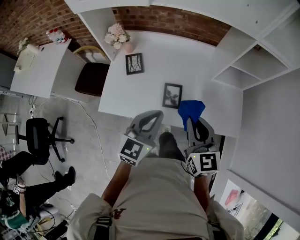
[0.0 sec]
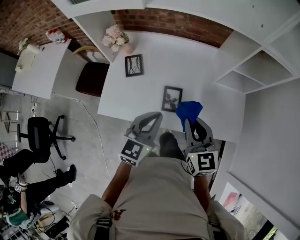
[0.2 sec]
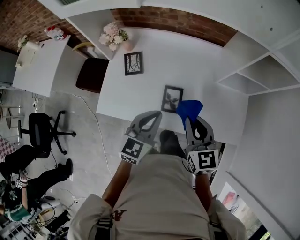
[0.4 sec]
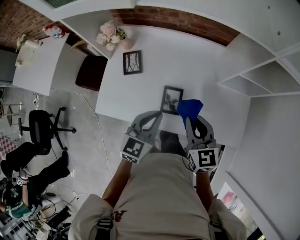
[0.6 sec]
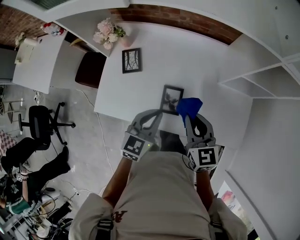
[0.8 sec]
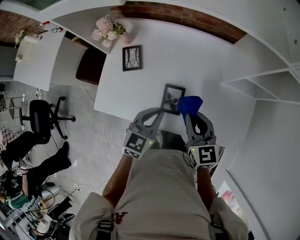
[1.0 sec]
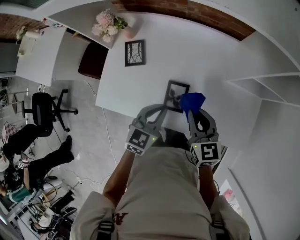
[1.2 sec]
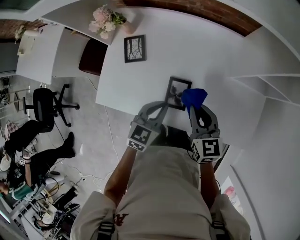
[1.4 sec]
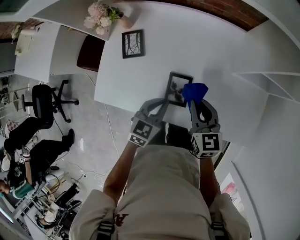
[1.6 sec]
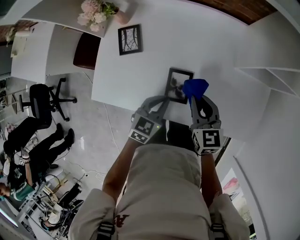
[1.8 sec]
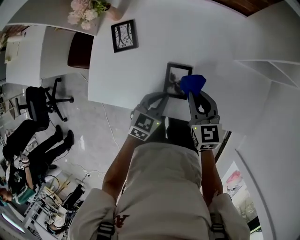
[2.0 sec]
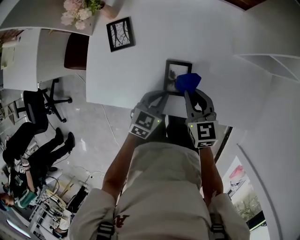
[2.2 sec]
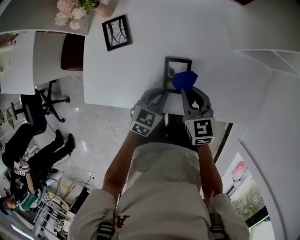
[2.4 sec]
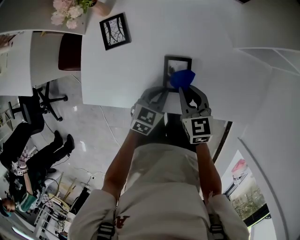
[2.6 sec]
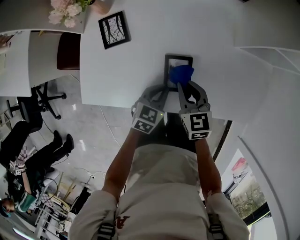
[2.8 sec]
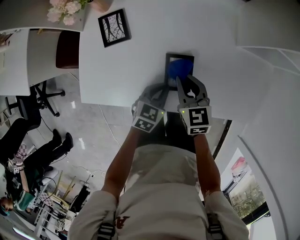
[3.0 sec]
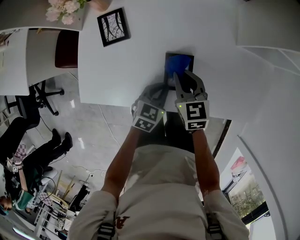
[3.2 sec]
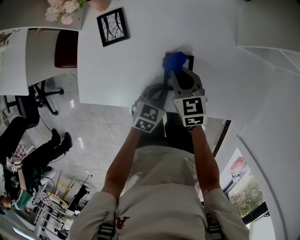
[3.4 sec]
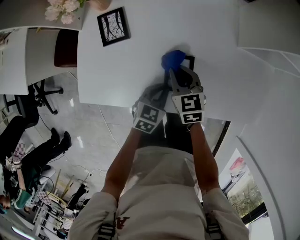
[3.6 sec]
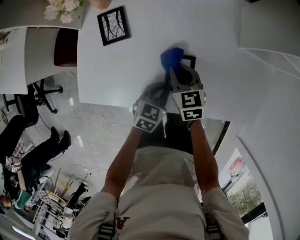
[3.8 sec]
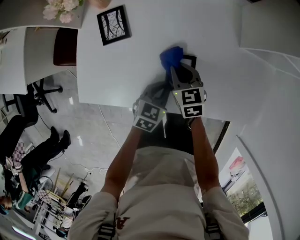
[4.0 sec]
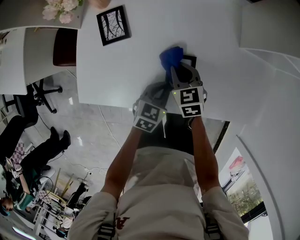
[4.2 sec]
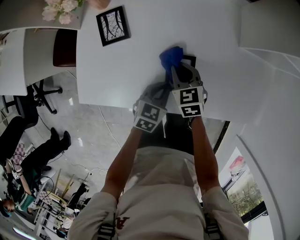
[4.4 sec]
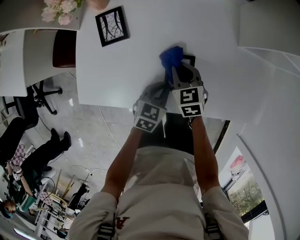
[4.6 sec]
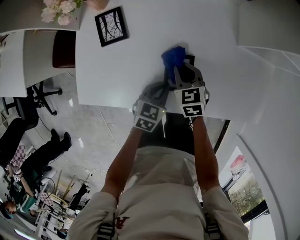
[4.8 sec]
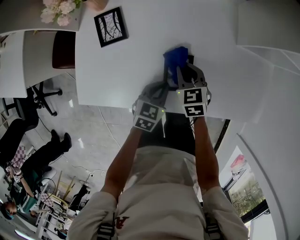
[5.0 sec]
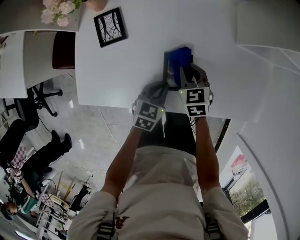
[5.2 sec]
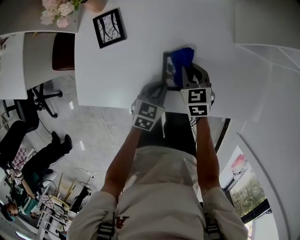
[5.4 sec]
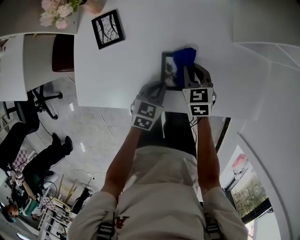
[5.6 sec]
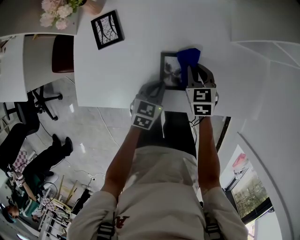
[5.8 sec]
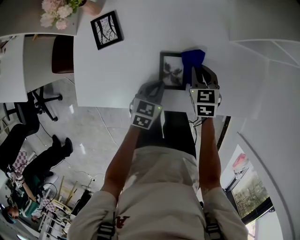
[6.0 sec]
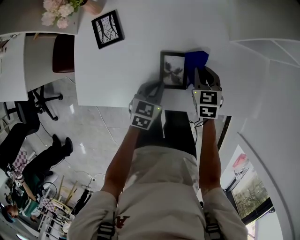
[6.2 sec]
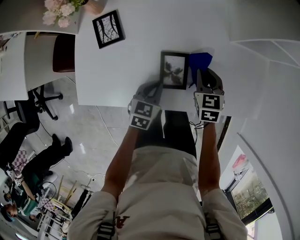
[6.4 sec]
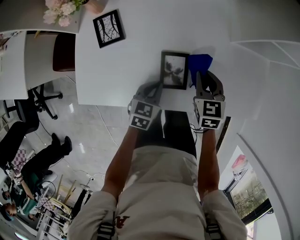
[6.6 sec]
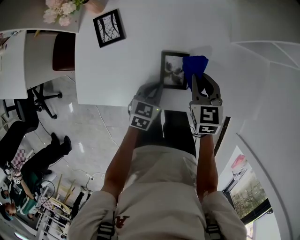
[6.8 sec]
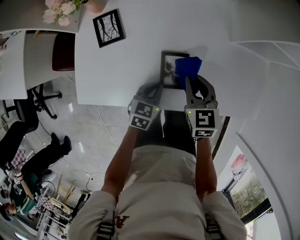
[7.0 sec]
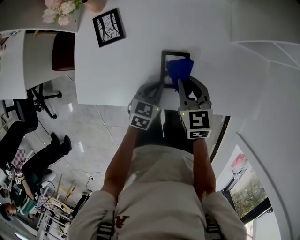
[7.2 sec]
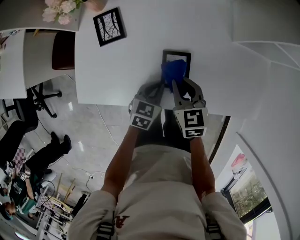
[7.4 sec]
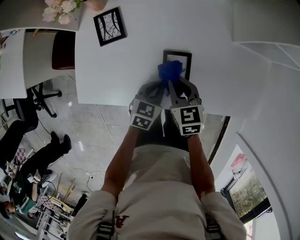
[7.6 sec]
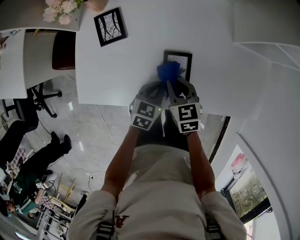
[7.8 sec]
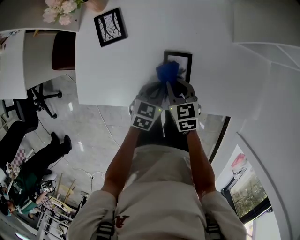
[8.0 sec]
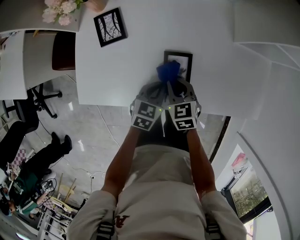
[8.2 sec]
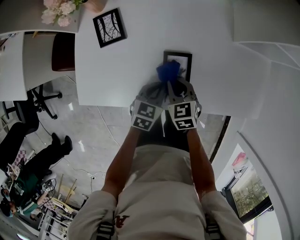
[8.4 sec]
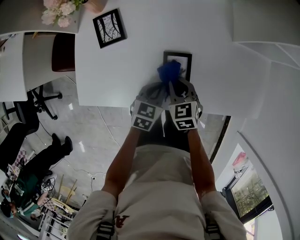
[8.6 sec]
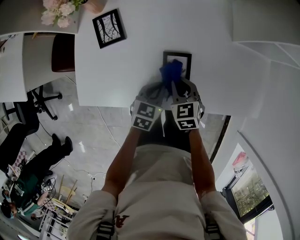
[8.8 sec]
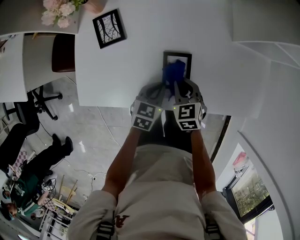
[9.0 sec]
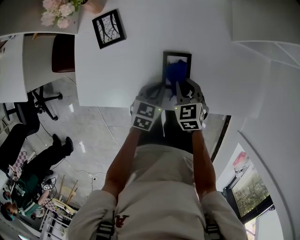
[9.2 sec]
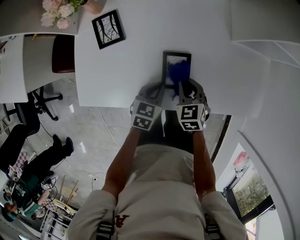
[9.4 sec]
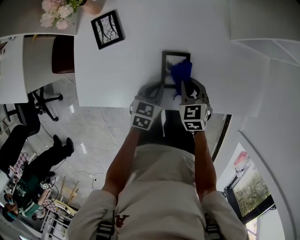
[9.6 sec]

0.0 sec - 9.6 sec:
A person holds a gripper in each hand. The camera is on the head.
0.0 sec - 1.6 sec: The grippers both shift downward and forward by some 20 cm. The left gripper swivels approximately 20 degrees.
1.6 sec - 3.2 sec: The right gripper travels downward and to the left by about 10 cm, and moves about 10 cm backward and comes back, while the left gripper is displaced downward by about 10 cm.
3.2 sec - 4.8 sec: The right gripper shifts about 5 cm downward.
4.8 sec - 6.4 sec: The right gripper travels to the right by approximately 10 cm.
6.4 sec - 8.0 sec: The right gripper travels to the left and backward by roughly 15 cm.
8.0 sec - 9.6 sec: The right gripper is displaced to the right by about 5 cm.

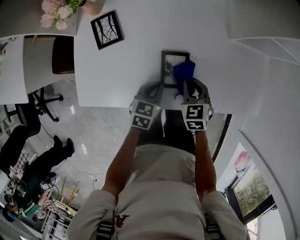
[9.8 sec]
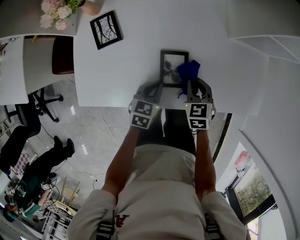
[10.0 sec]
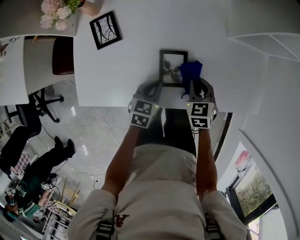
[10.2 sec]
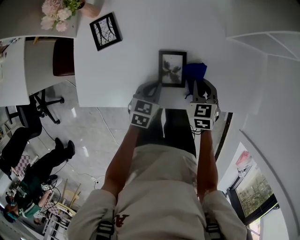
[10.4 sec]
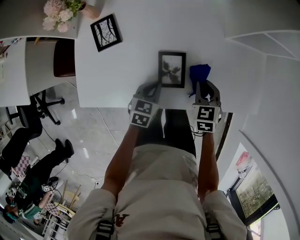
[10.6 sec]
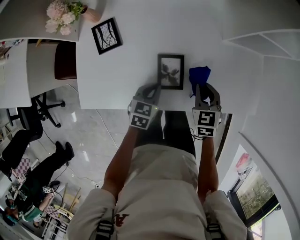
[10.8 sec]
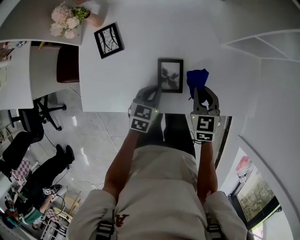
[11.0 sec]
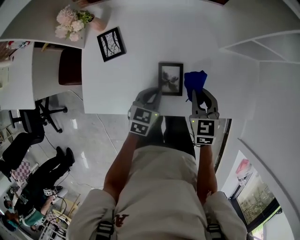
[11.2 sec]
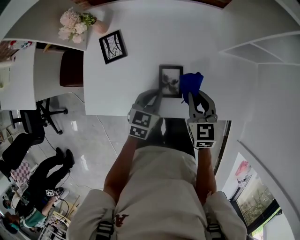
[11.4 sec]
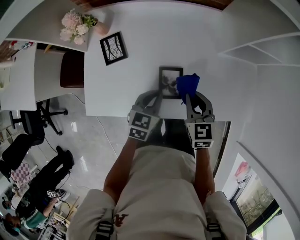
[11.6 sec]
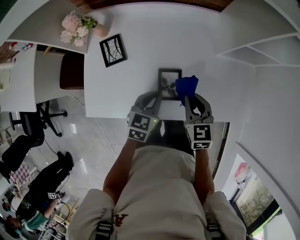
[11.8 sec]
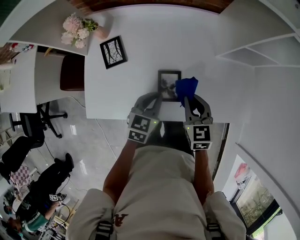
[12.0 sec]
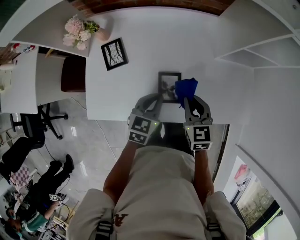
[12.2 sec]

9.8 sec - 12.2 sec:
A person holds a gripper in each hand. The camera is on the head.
9.8 sec - 11.0 sec: The right gripper travels upward by approximately 5 cm.
11.0 sec - 12.2 sec: The left gripper shifts roughly 10 cm upward. Meanwhile the right gripper shifts roughly 5 cm upward.

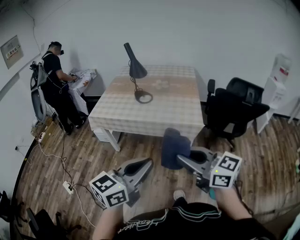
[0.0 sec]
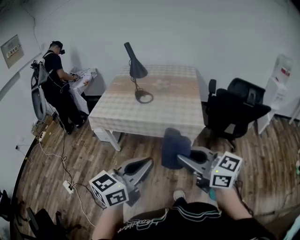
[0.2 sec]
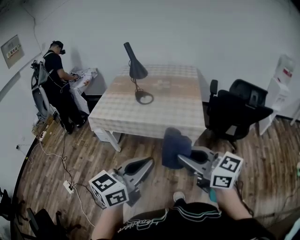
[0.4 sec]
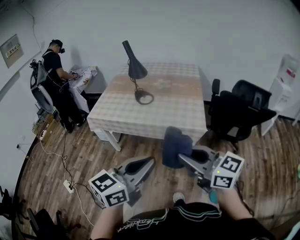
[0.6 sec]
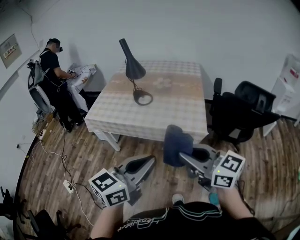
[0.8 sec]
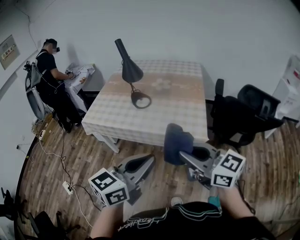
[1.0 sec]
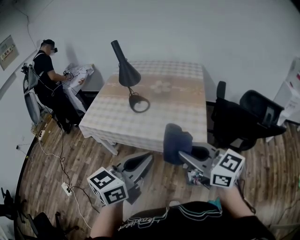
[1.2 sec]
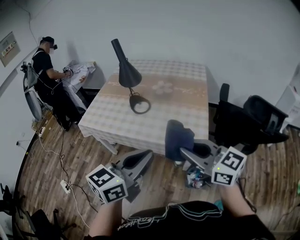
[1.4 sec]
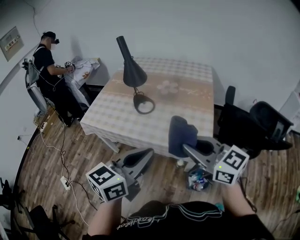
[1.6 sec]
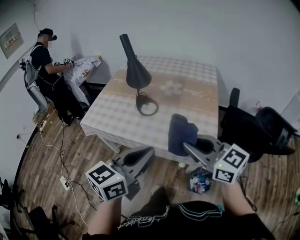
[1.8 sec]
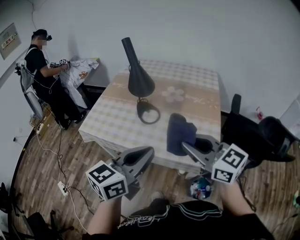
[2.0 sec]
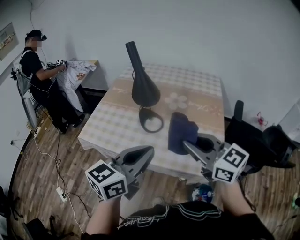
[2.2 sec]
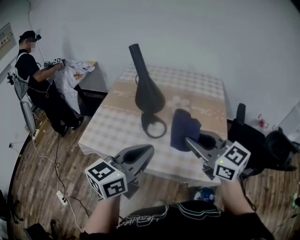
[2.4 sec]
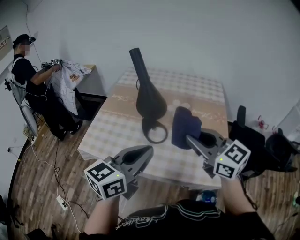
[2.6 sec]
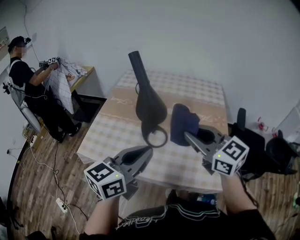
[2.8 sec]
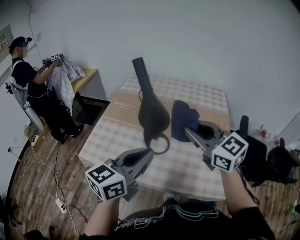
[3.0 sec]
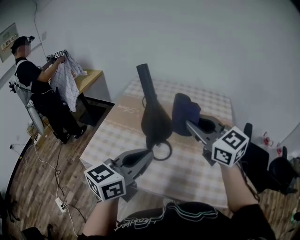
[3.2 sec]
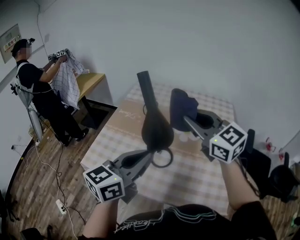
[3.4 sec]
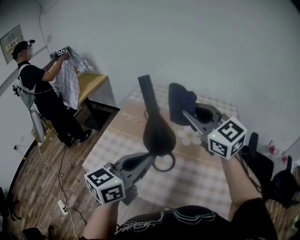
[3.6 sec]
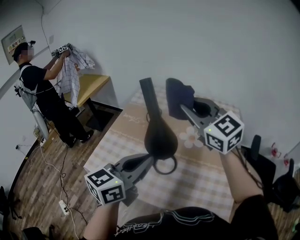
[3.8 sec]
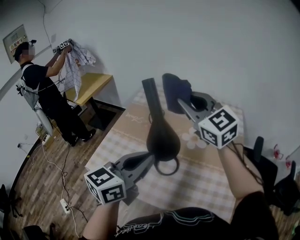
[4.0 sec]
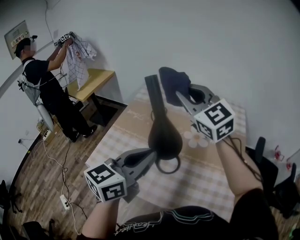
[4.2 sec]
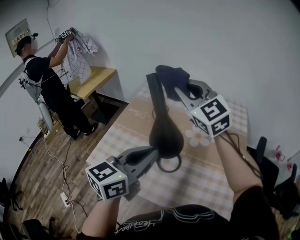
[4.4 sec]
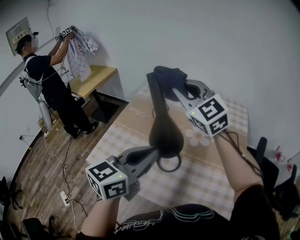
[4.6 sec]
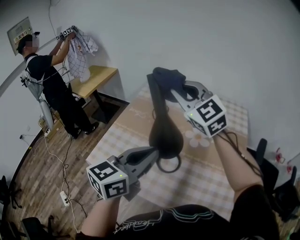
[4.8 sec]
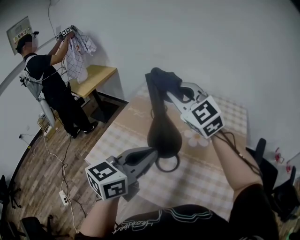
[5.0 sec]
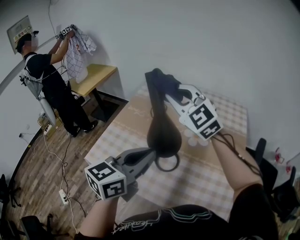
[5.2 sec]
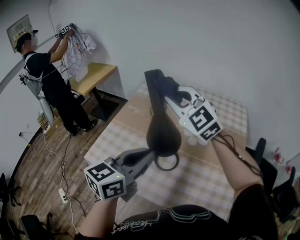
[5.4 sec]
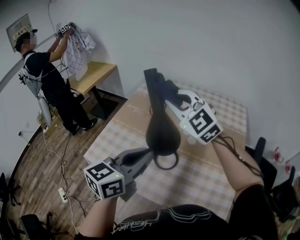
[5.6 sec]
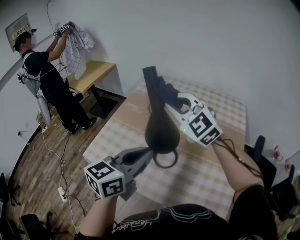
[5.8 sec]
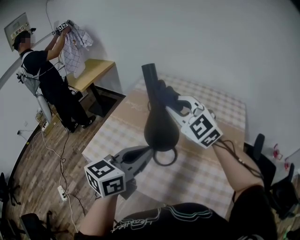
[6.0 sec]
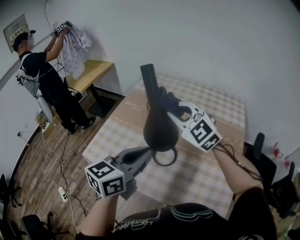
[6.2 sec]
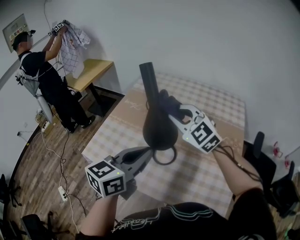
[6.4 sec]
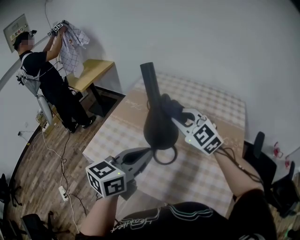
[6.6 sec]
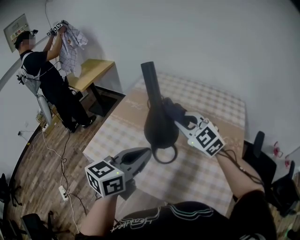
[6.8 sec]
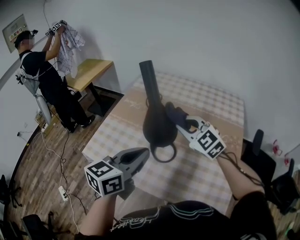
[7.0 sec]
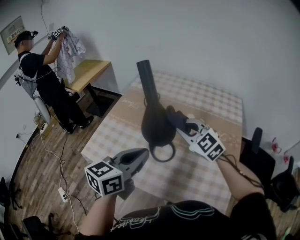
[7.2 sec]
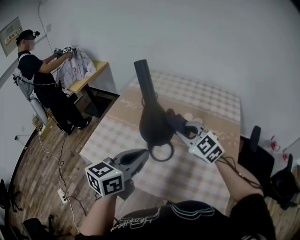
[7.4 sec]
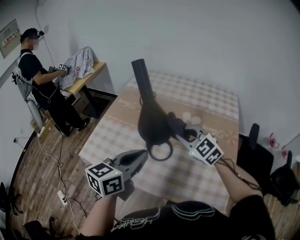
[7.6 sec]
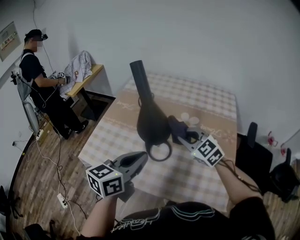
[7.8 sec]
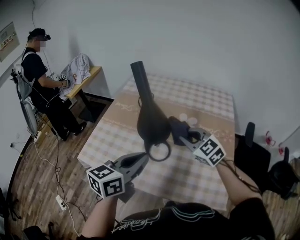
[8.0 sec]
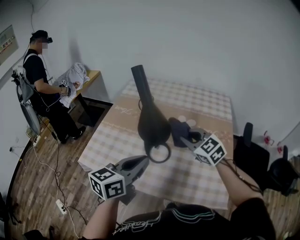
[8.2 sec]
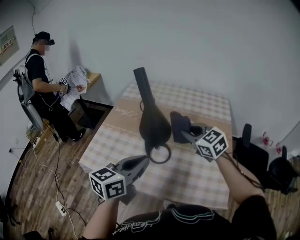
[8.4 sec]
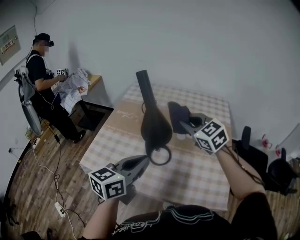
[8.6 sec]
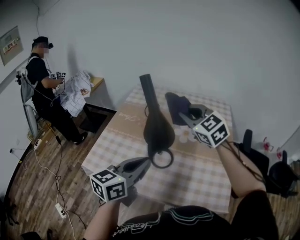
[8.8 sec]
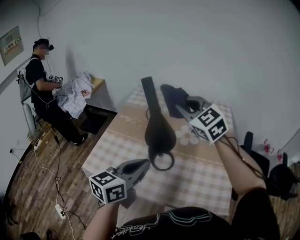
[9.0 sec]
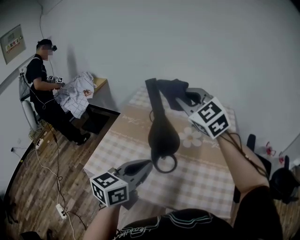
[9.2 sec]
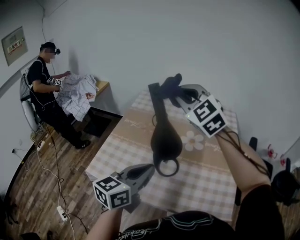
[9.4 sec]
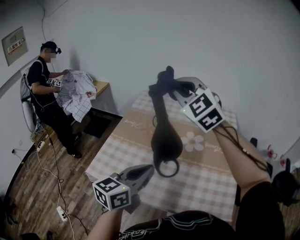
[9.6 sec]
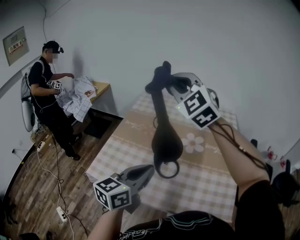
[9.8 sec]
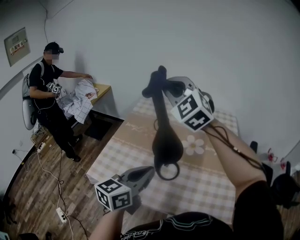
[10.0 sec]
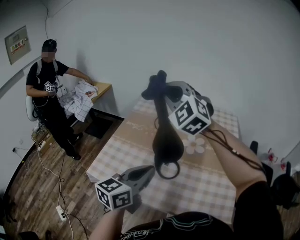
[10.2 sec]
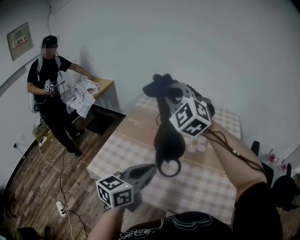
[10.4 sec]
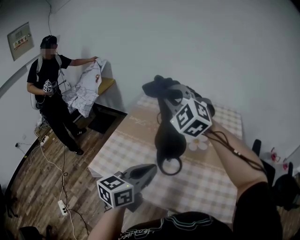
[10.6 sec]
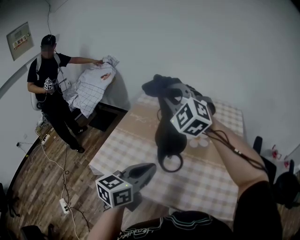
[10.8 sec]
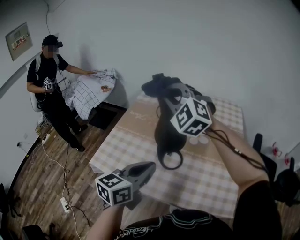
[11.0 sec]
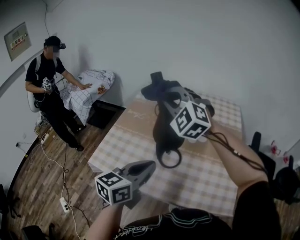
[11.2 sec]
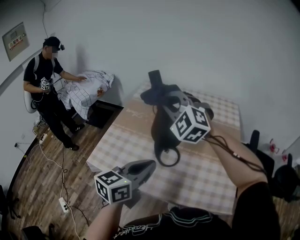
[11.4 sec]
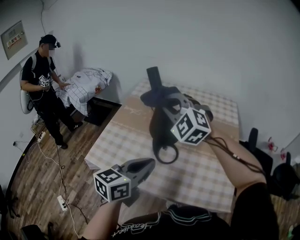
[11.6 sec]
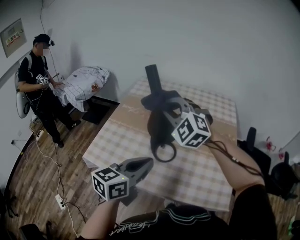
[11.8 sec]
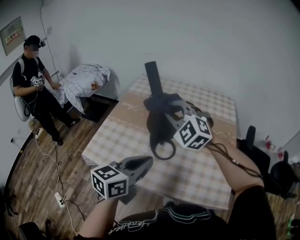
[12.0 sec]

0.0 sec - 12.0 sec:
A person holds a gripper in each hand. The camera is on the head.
0.0 sec - 1.6 sec: The grippers both shift forward by about 25 cm.
1.6 sec - 3.0 sec: The right gripper travels forward by approximately 25 cm. The left gripper travels forward and to the left by some 25 cm.
3.0 sec - 4.4 sec: The left gripper shifts some 10 cm forward. The right gripper travels forward by roughly 20 cm, and swivels some 20 degrees.
4.4 sec - 6.0 sec: The right gripper is displaced downward by roughly 10 cm.
6.0 sec - 7.6 sec: The right gripper travels downward, to the right and backward by roughly 15 cm.
7.6 sec - 9.0 sec: The right gripper goes about 20 cm upward.
9.0 sec - 10.4 sec: The right gripper shifts roughly 10 cm to the left and upward, and rotates about 30 degrees.
10.4 sec - 12.0 sec: The right gripper heads downward and backward, covering about 15 cm. Meanwhile the left gripper shifts by approximately 5 cm.
